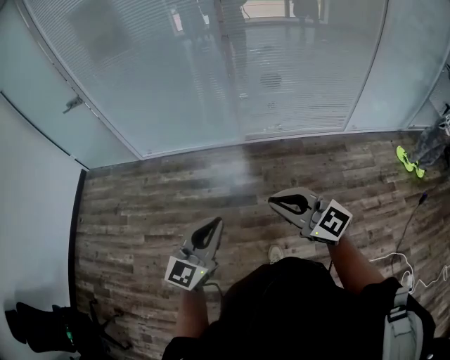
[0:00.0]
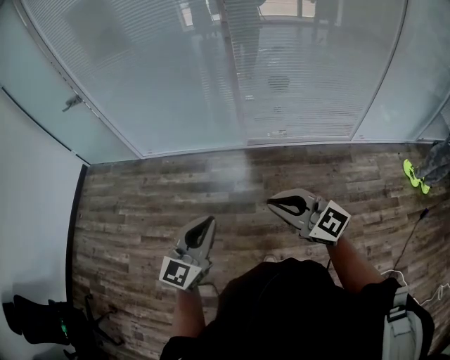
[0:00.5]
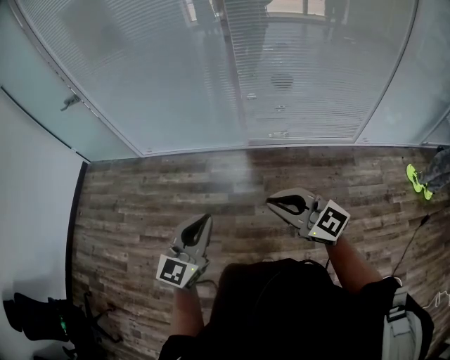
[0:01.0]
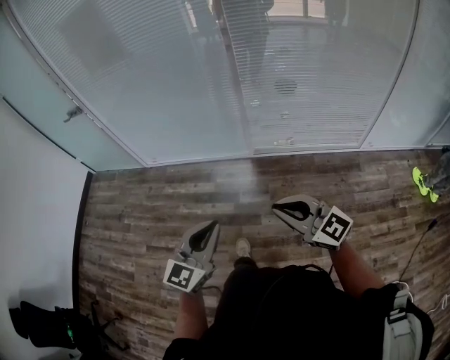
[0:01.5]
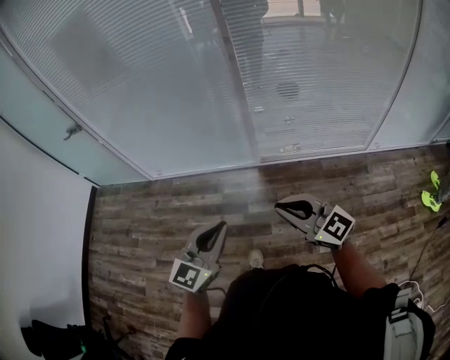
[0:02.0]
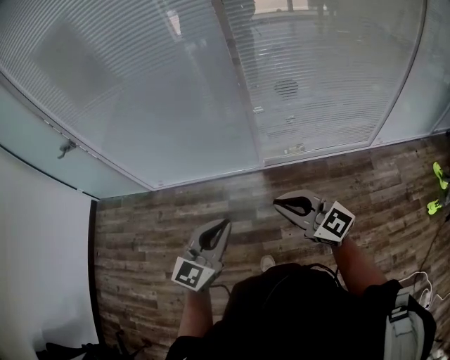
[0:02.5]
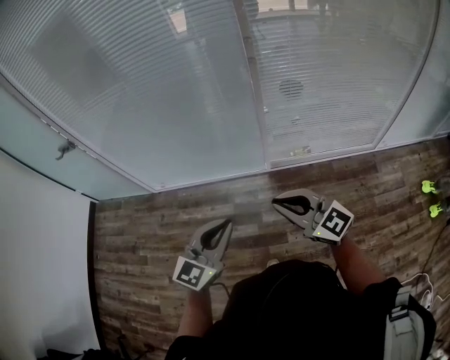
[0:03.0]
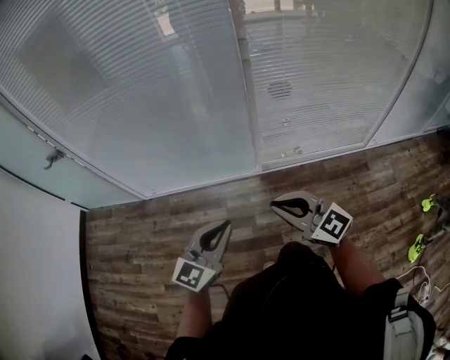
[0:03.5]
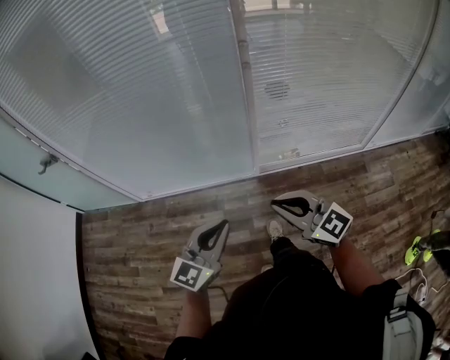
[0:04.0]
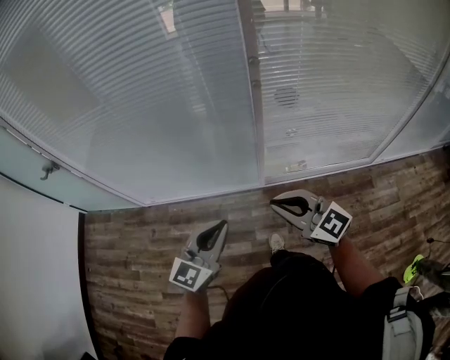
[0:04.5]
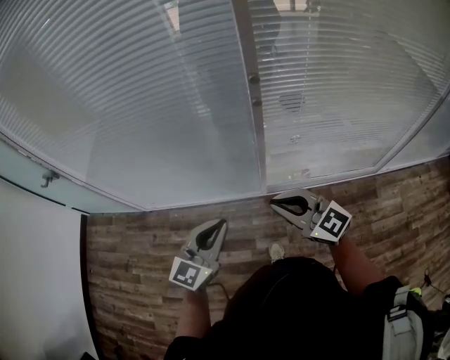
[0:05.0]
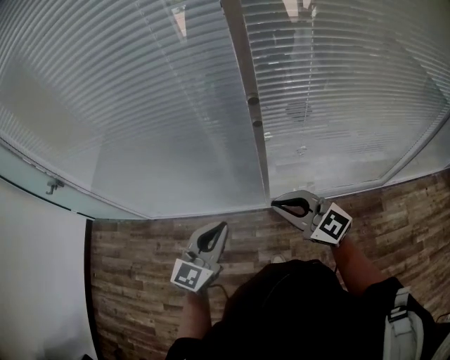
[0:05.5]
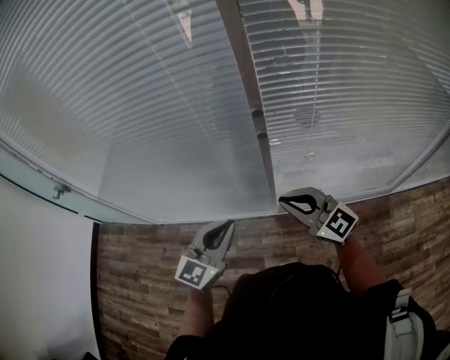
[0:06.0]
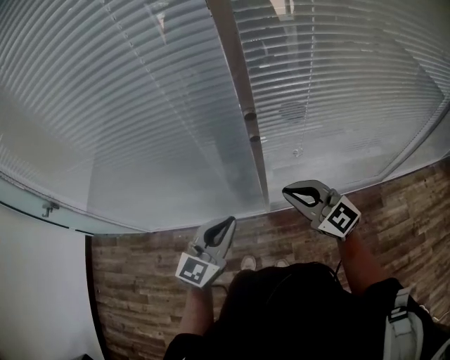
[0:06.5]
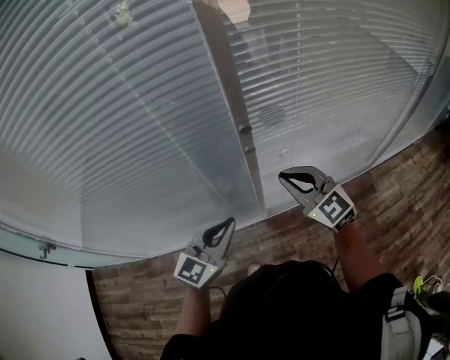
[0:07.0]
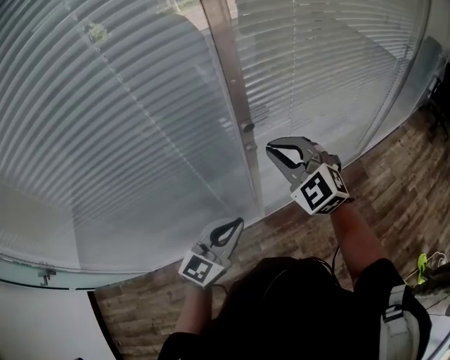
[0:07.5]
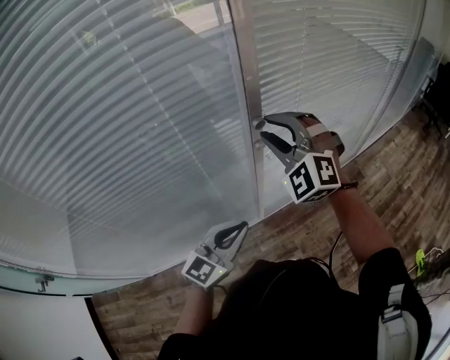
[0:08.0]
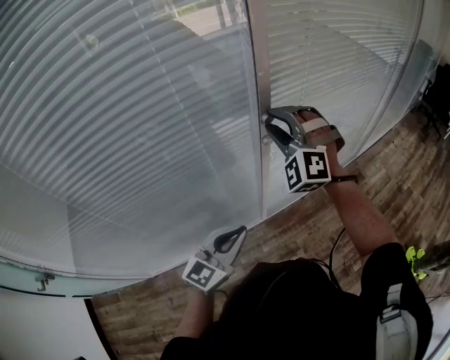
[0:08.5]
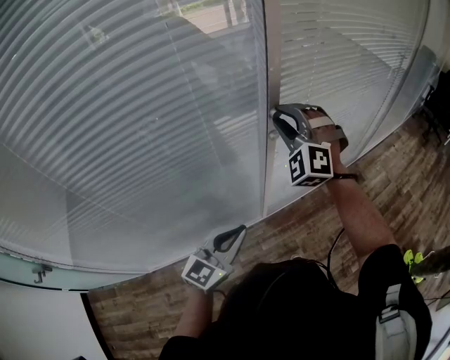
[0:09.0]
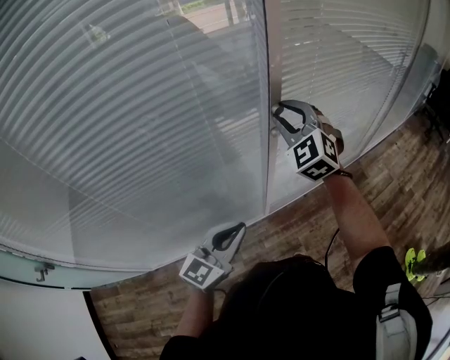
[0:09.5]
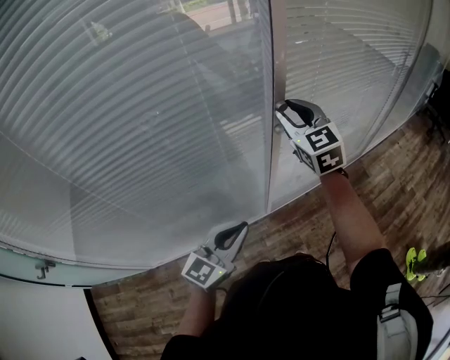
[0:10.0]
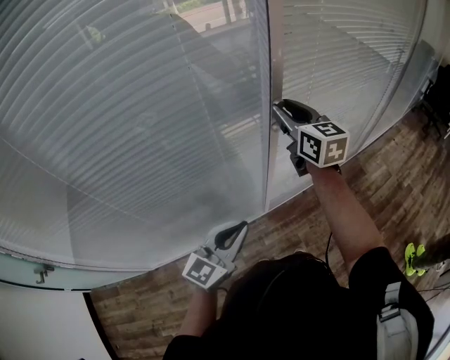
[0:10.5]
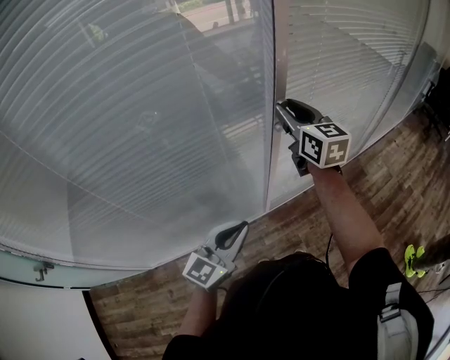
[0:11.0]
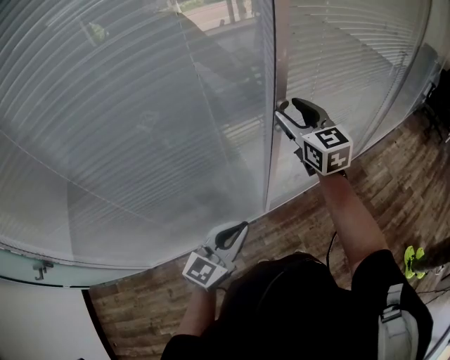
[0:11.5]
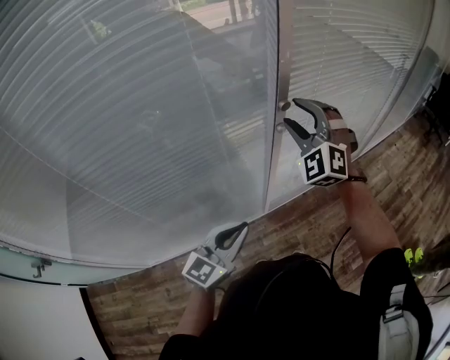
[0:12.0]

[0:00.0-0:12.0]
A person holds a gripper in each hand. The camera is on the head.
0:00.0 to 0:02.0: The two grippers go some 20 cm forward.
0:02.0 to 0:04.0: The right gripper heads forward and to the left, covering some 20 cm; the left gripper is displaced forward by about 20 cm.
0:04.0 to 0:06.0: The grippers both shift forward and to the right by about 25 cm.
0:06.0 to 0:08.0: The right gripper ends up approximately 20 cm from where it was, swivels some 70 degrees, and opens, while the left gripper ends up some 5 cm from where it was, and rotates some 30 degrees.
0:08.0 to 0:10.0: The left gripper moves backward, approximately 5 cm. Meanwhile the right gripper twists about 50 degrees clockwise, seen from behind.
0:10.0 to 0:12.0: The right gripper rolls counterclockwise, seen from behind, by roughly 50 degrees, and opens up.

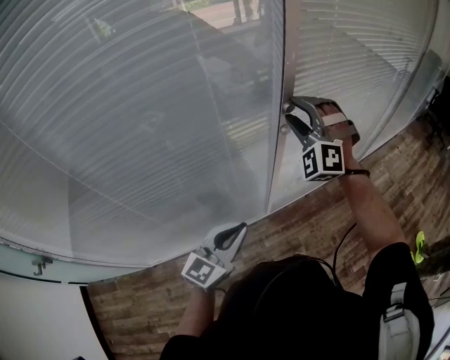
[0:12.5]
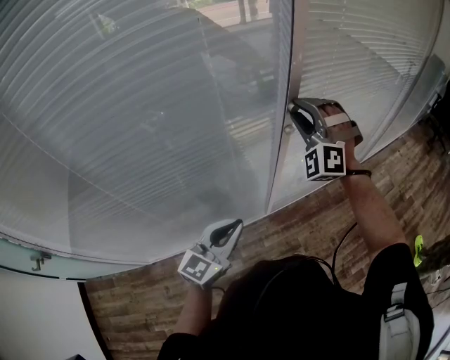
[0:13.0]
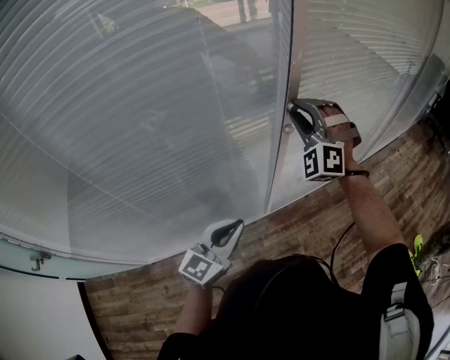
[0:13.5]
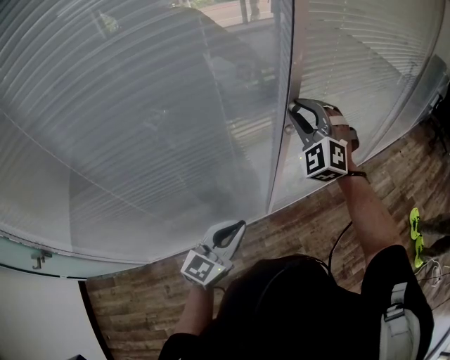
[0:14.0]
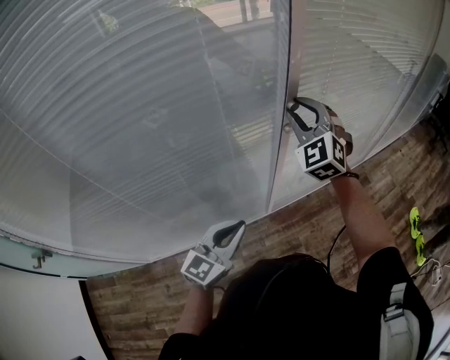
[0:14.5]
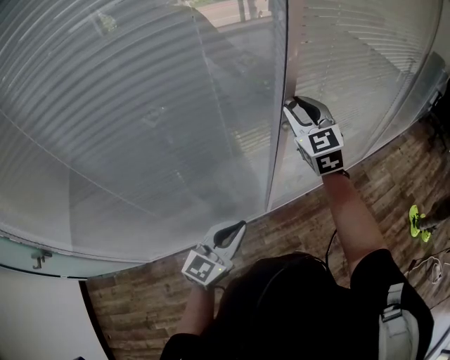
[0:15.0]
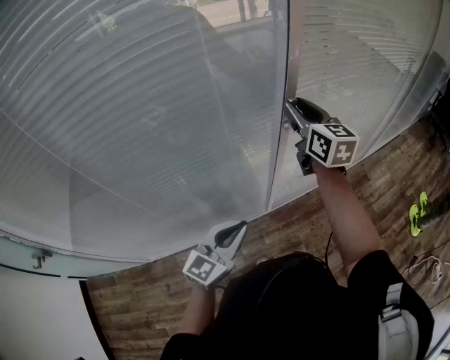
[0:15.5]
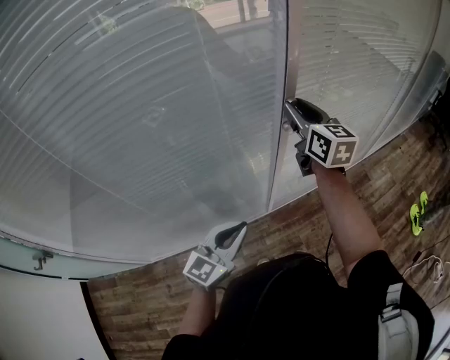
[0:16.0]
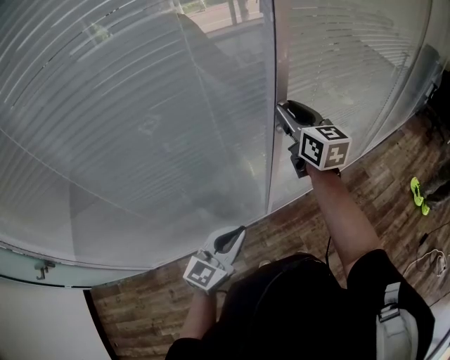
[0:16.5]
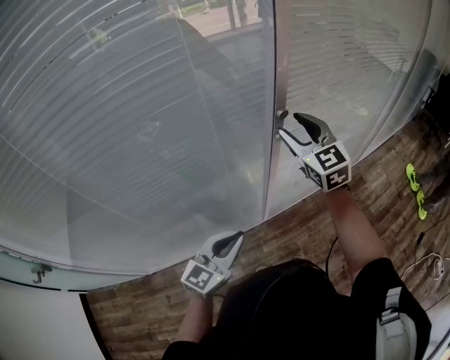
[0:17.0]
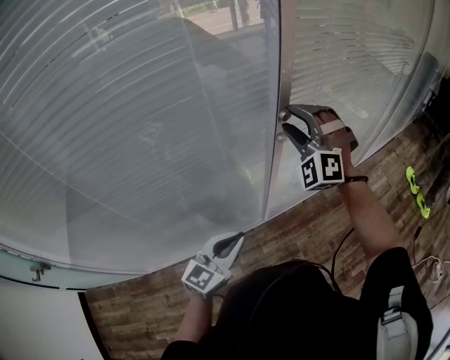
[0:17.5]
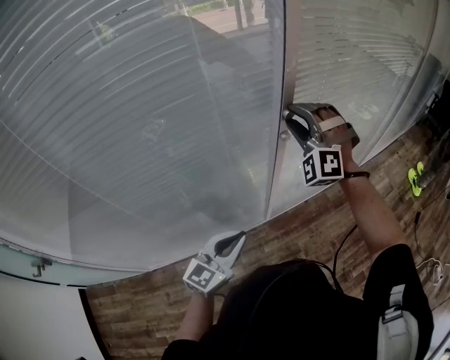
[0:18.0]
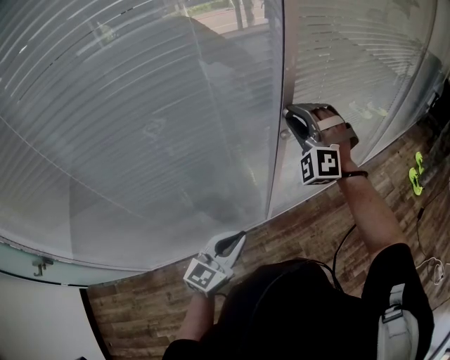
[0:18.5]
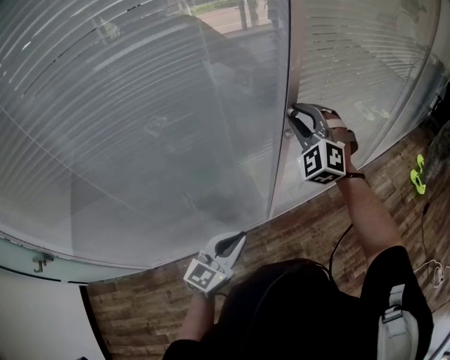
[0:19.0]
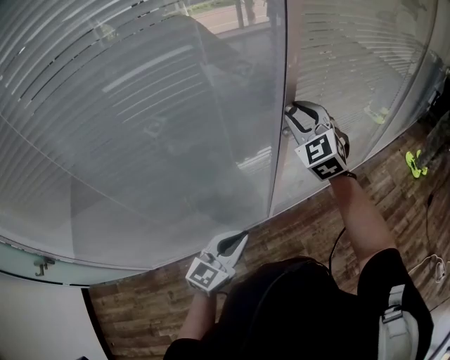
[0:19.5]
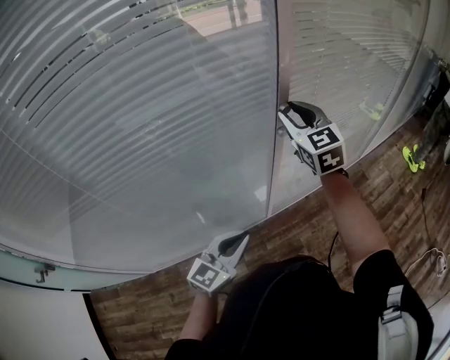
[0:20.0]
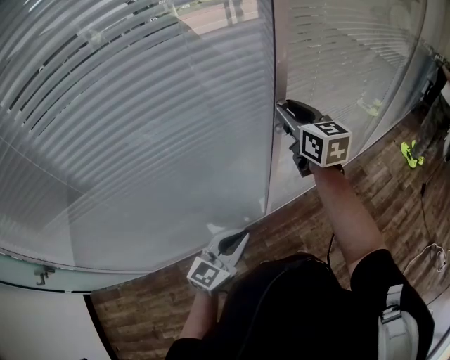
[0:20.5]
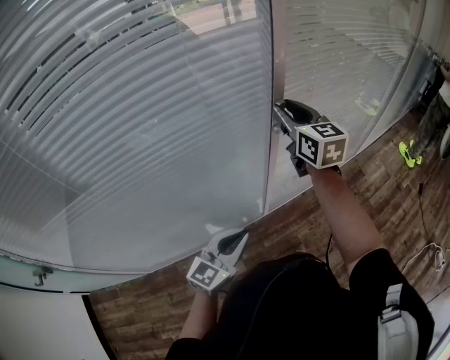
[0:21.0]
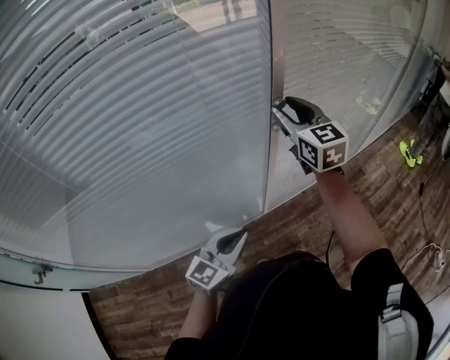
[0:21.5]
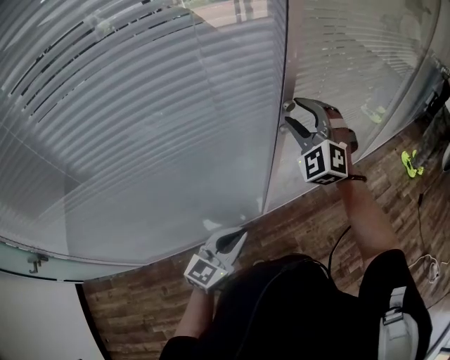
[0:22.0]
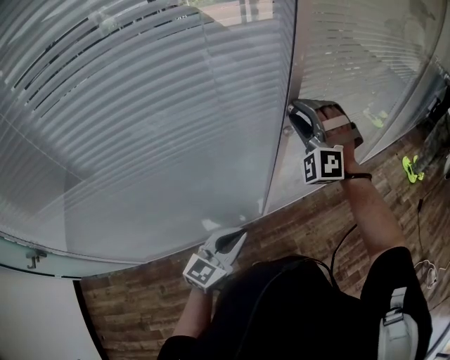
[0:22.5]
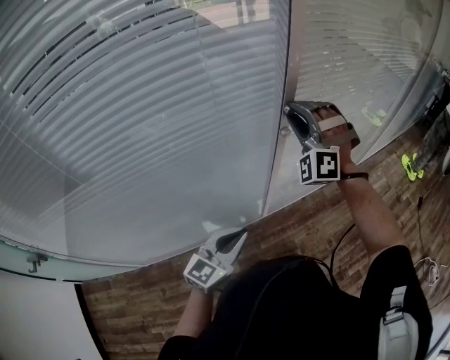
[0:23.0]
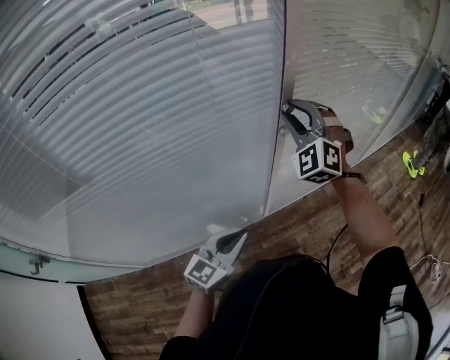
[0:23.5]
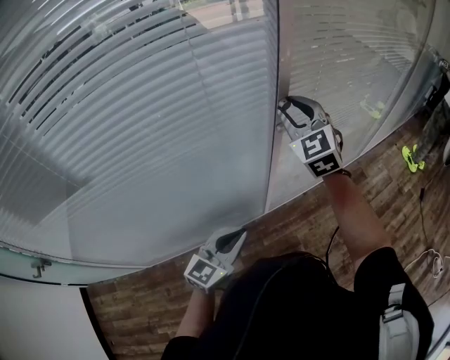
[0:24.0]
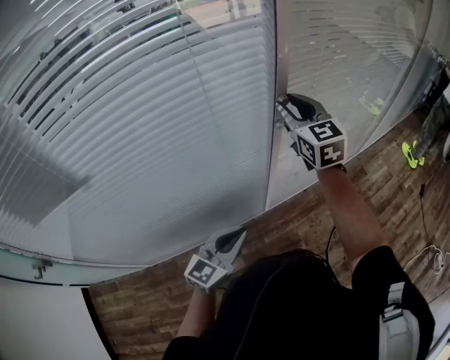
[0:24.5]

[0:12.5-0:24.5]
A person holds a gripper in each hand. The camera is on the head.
0:12.5 to 0:14.5: The right gripper changes its angle by about 30 degrees.
0:14.5 to 0:16.5: The right gripper rotates around the line of its fingers by roughly 60 degrees, clockwise from behind.
0:16.5 to 0:18.5: The right gripper rolls counterclockwise, seen from behind, by approximately 90 degrees, and opens and closes again.
0:18.5 to 0:20.5: The right gripper rotates around the line of its fingers by about 90 degrees, clockwise from behind.
0:20.5 to 0:22.5: The right gripper rotates around the line of its fingers by roughly 90 degrees, counterclockwise from behind.
0:22.5 to 0:24.5: The right gripper rolls clockwise, seen from behind, by roughly 80 degrees.

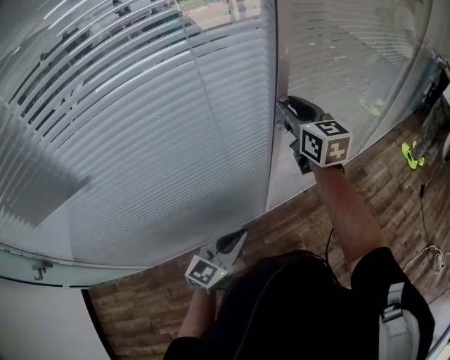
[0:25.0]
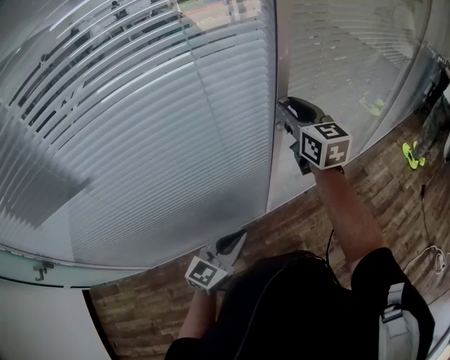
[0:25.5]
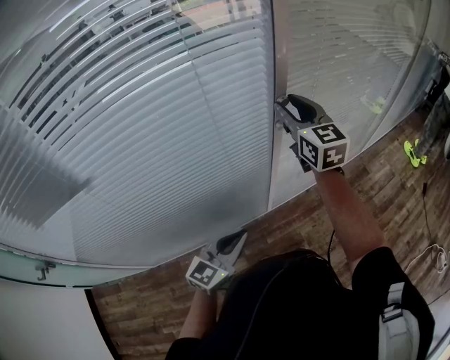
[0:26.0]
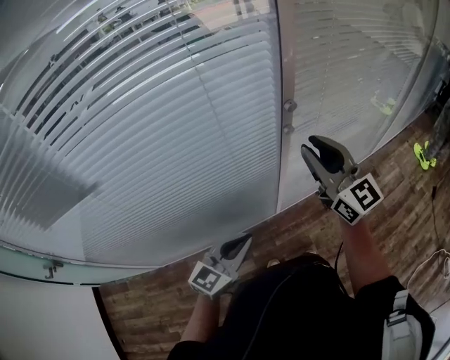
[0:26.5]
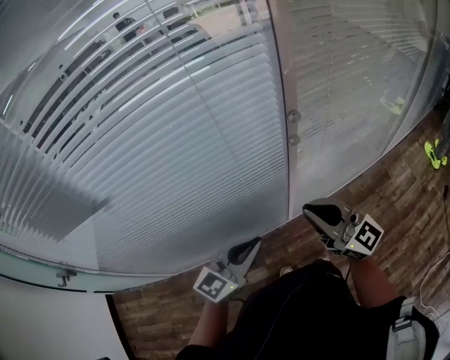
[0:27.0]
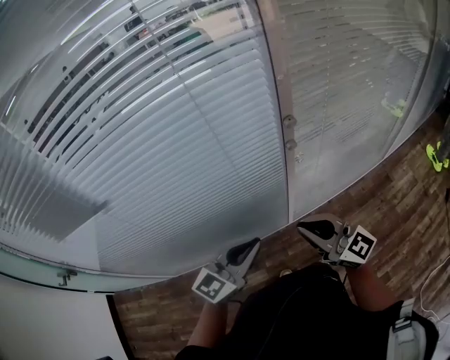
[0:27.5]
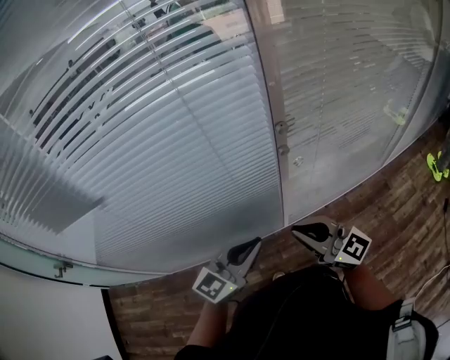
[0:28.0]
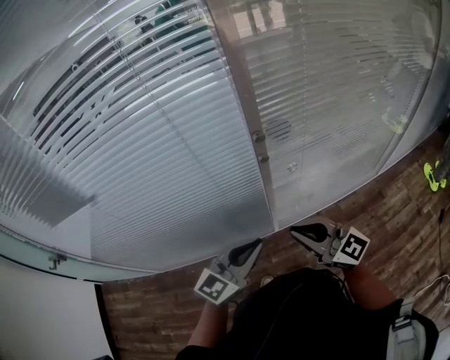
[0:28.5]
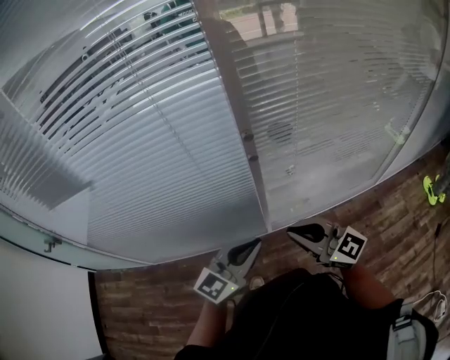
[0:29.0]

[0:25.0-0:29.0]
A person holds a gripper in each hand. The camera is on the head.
0:25.0 to 0:27.0: The left gripper shifts some 5 cm upward; the right gripper shifts approximately 20 cm backward, turns by approximately 40 degrees, and closes.
0:27.0 to 0:29.0: The right gripper moves to the right, roughly 10 cm. The left gripper is displaced to the right by approximately 15 cm.
